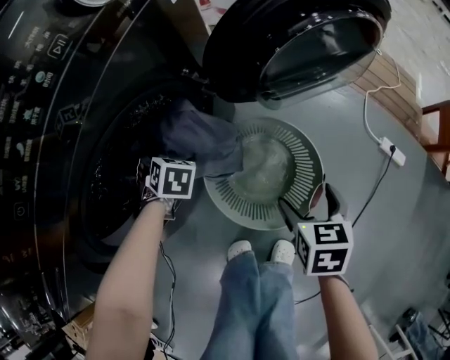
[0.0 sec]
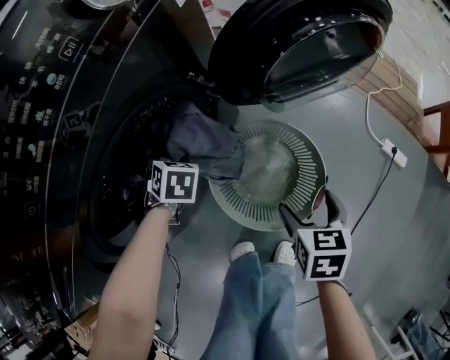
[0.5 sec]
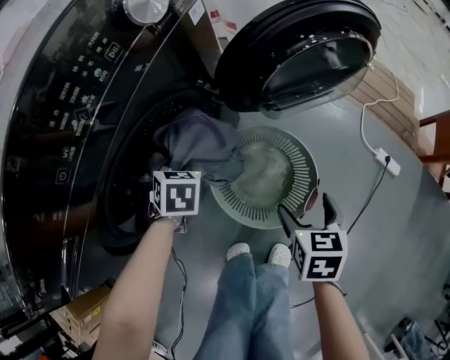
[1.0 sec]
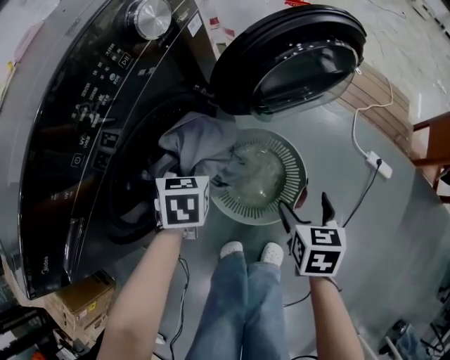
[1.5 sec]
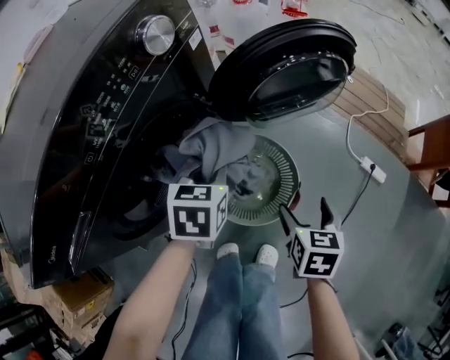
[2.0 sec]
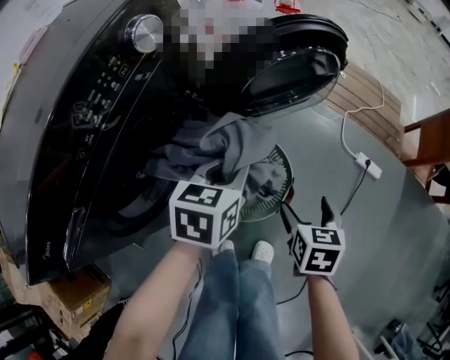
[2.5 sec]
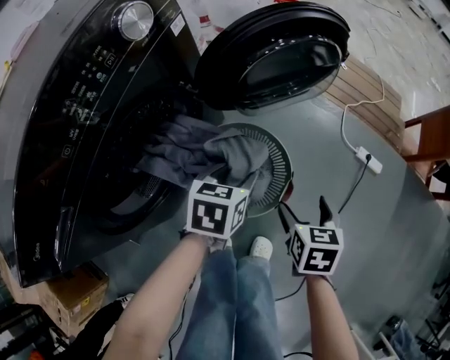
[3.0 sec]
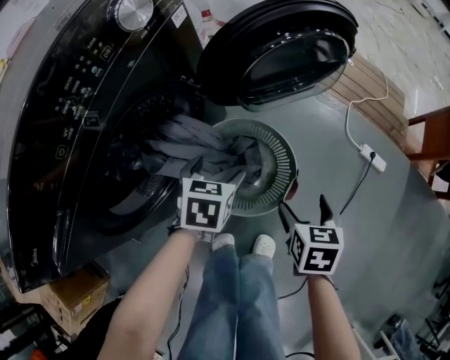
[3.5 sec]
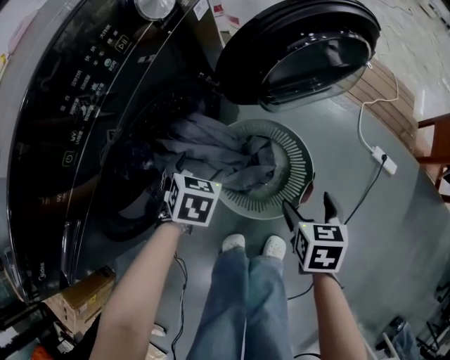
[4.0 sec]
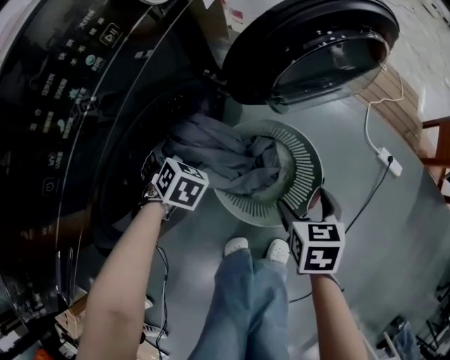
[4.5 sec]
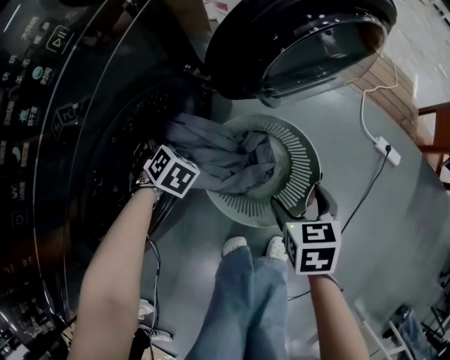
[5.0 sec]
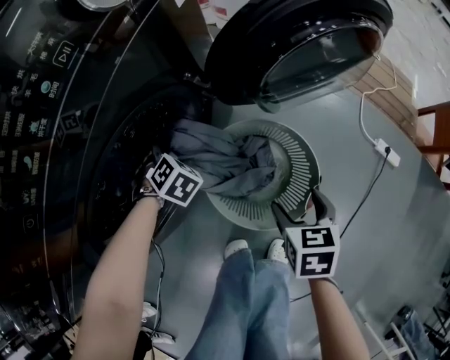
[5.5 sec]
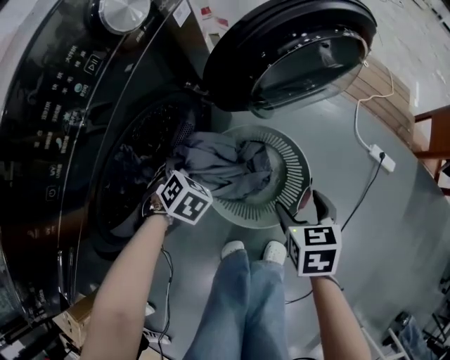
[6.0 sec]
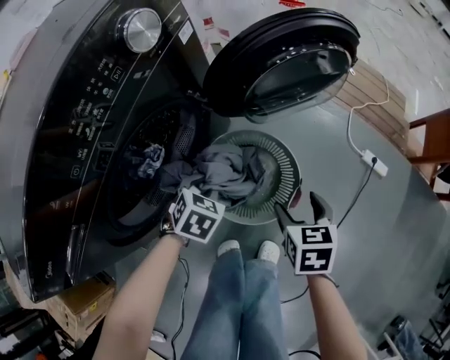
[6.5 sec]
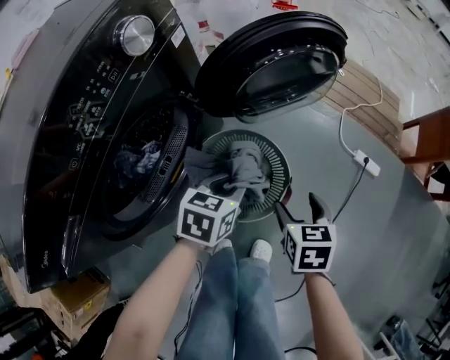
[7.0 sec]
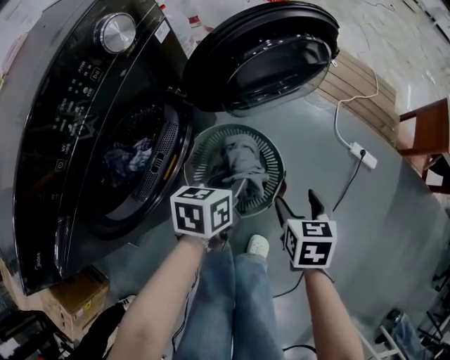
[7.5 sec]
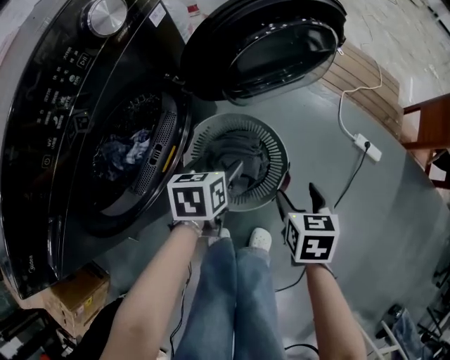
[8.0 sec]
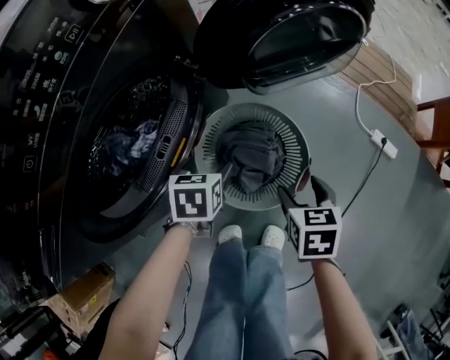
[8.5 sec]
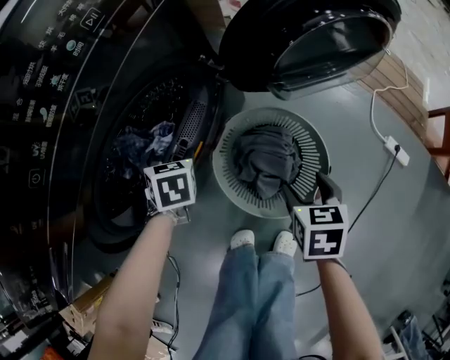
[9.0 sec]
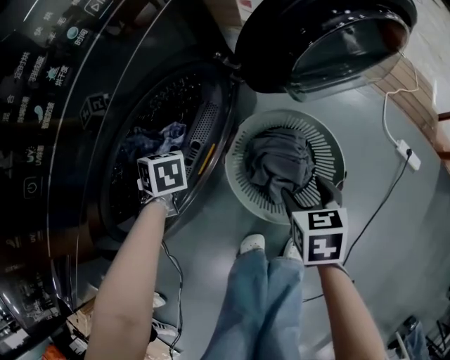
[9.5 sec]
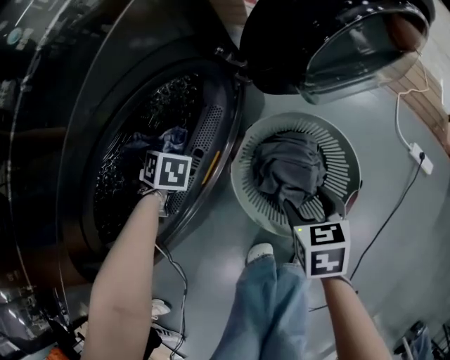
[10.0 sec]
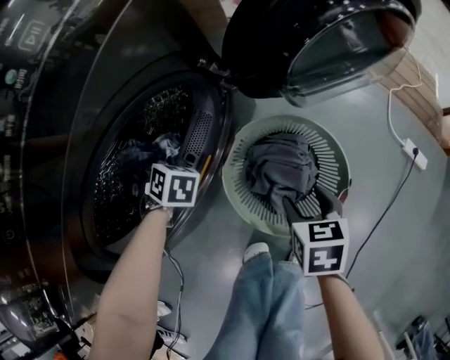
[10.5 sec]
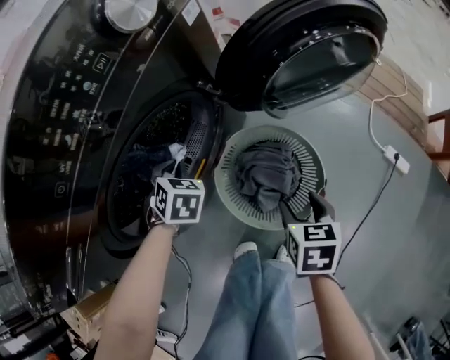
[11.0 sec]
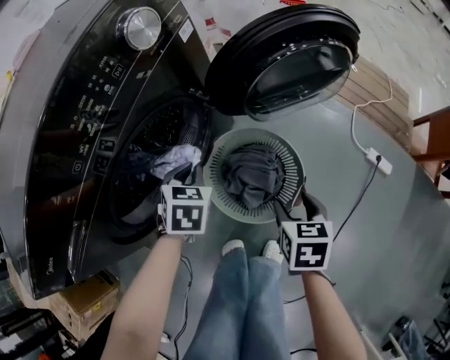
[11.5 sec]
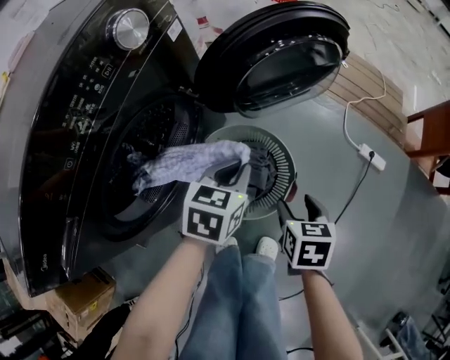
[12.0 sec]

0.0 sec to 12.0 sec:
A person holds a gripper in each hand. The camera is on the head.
0.0 sec to 2.0 sec: The right gripper shifts roughly 10 cm upward, while the left gripper moves upward, to the right and backward, roughly 25 cm, swivels some 30 degrees, and closes its fingers.
2.0 sec to 4.0 sec: The right gripper travels downward by roughly 5 cm. Meanwhile the left gripper is displaced downward and to the left by approximately 15 cm, changes its angle by roughly 20 degrees, and opens up.
4.0 sec to 6.0 sec: The left gripper travels downward by some 5 cm, turns by some 30 degrees, and closes up.
6.0 sec to 8.0 sec: The right gripper moves about 5 cm, while the left gripper ends up about 15 cm from where it was, rolls counterclockwise, seen from behind, by about 50 degrees, and opens its fingers.
8.0 sec to 10.0 sec: The left gripper moves about 35 cm, and swivels some 50 degrees; the right gripper shifts by about 20 cm.
10.0 sec to 12.0 sec: The right gripper moves about 20 cm; the left gripper ends up some 40 cm from where it was, and turns by some 60 degrees.

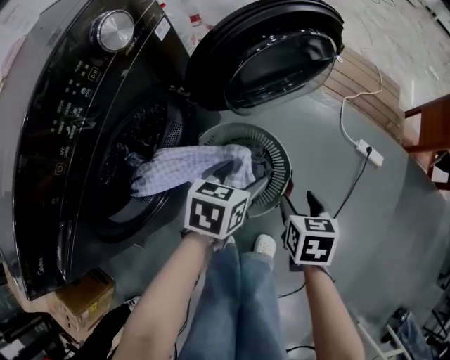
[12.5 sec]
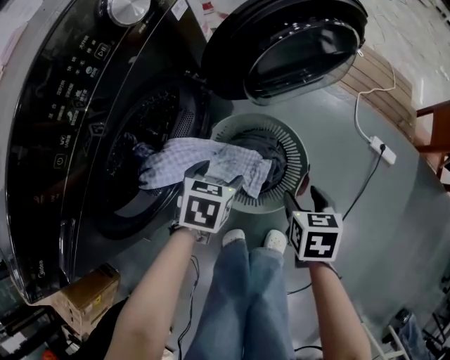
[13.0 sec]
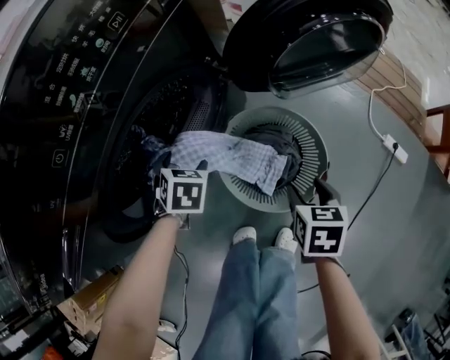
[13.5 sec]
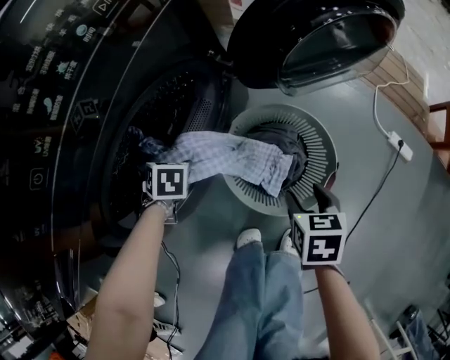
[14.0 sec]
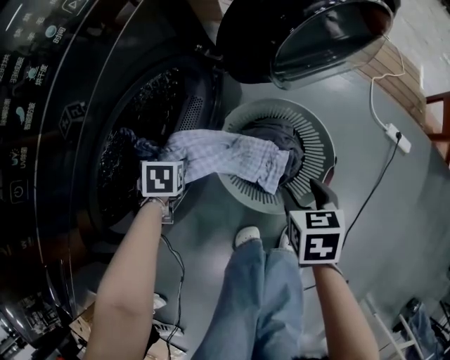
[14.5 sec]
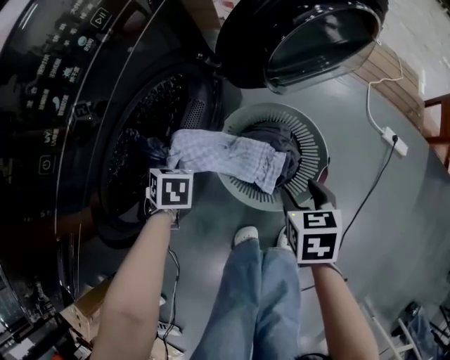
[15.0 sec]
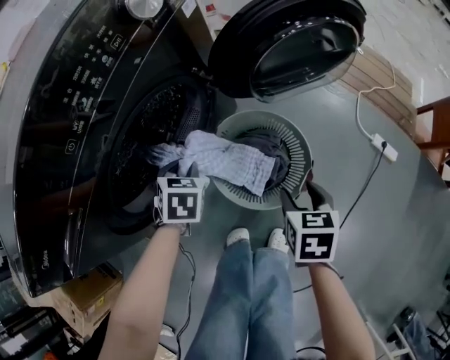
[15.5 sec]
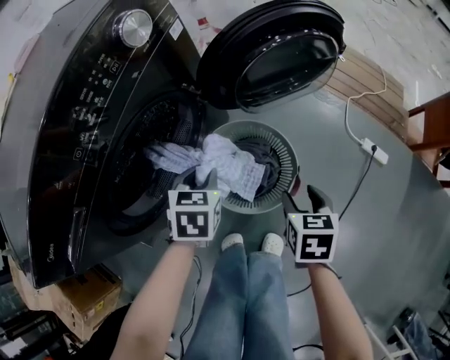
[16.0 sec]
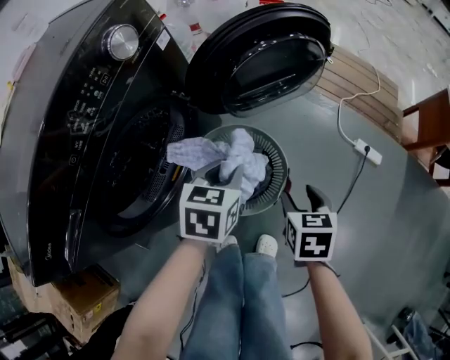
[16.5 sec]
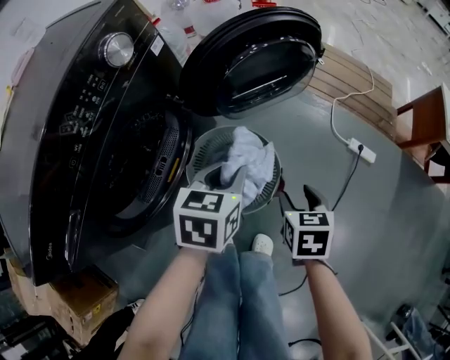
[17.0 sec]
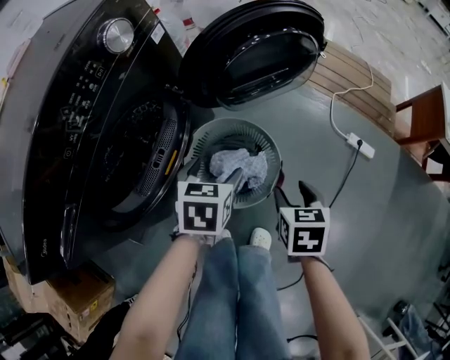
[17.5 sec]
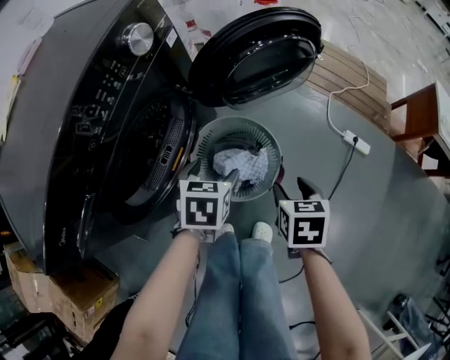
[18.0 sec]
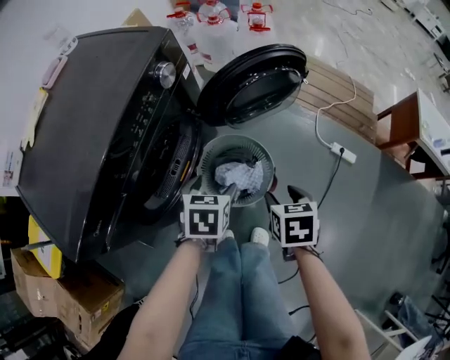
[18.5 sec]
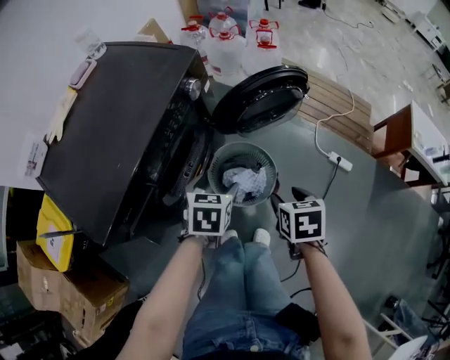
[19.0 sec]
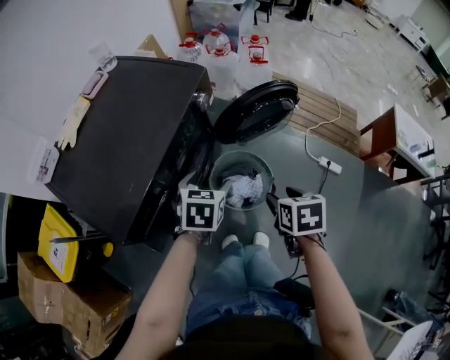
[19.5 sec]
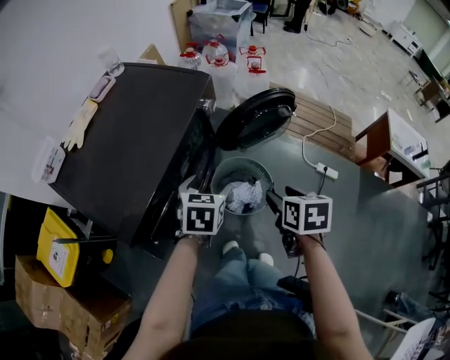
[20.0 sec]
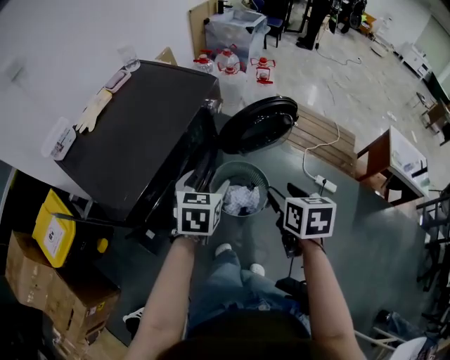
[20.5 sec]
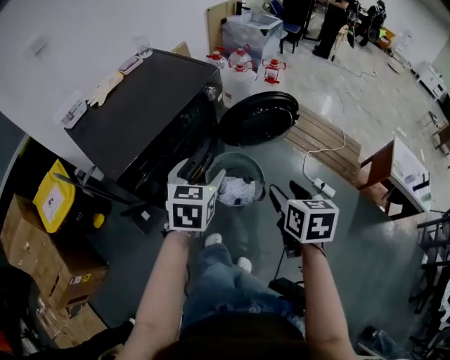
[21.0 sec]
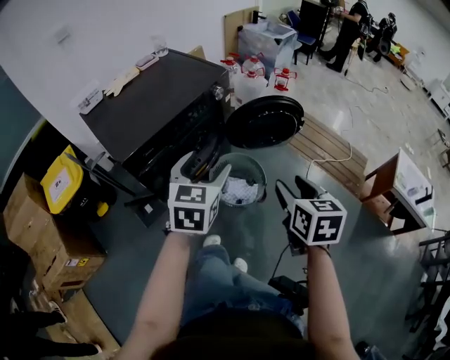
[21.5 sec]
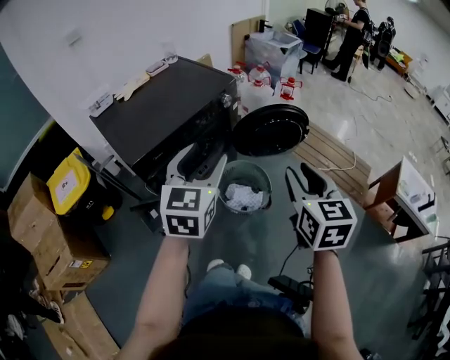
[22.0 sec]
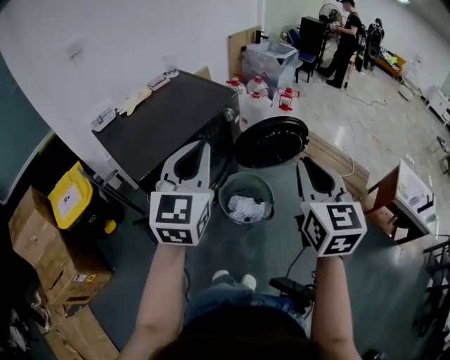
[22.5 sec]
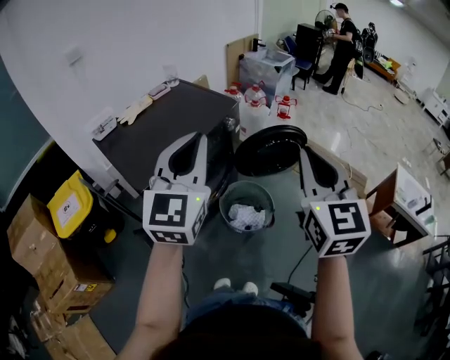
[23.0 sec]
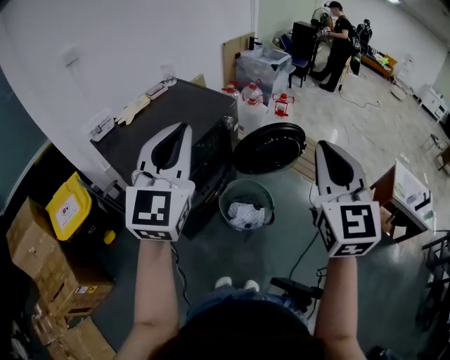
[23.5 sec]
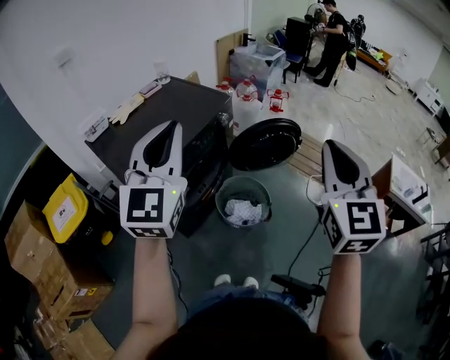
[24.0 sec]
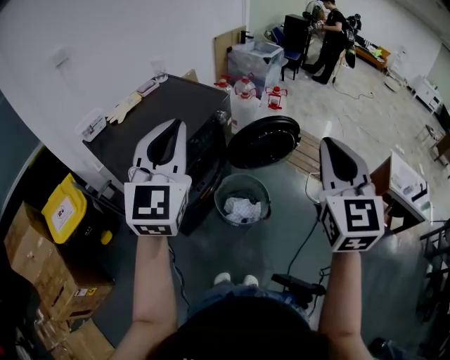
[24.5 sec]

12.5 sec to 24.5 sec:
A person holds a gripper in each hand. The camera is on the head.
12.5 sec to 14.5 sec: The left gripper ends up about 35 cm from where it was, and swivels roughly 40 degrees. The right gripper moves approximately 15 cm.
14.5 sec to 16.5 sec: The right gripper shifts by about 15 cm. Meanwhile the left gripper moves approximately 35 cm, rotates roughly 30 degrees, and closes up.
16.5 sec to 18.5 sec: The right gripper shifts roughly 15 cm upward. The left gripper moves up and down over some 10 cm, changing direction 2 times, and opens its fingers.
18.5 sec to 20.5 sec: Both grippers move upward, about 25 cm.
20.5 sec to 22.5 sec: The left gripper goes some 25 cm upward and backward, tips its fingers upward by some 40 degrees, and closes up, while the right gripper moves upward, approximately 20 cm, tips its fingers upward by roughly 30 degrees, and closes up.
22.5 sec to 24.5 sec: The grippers both shift upward by roughly 5 cm.

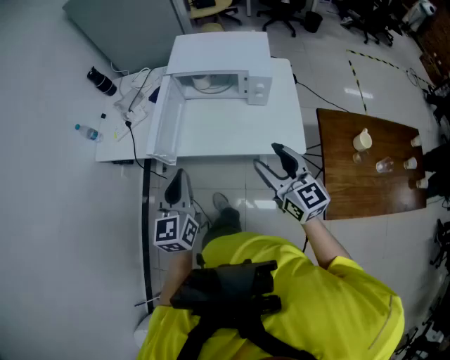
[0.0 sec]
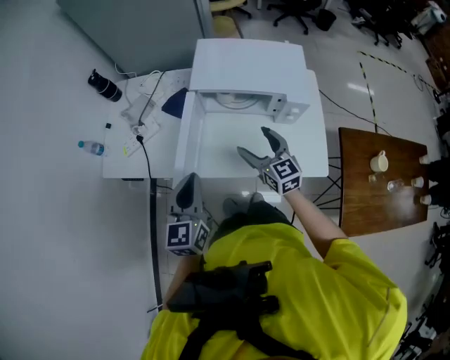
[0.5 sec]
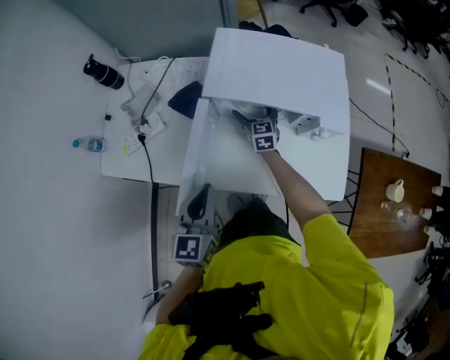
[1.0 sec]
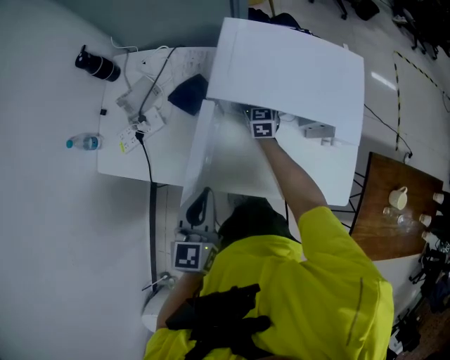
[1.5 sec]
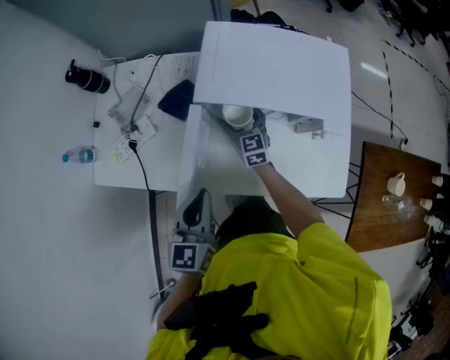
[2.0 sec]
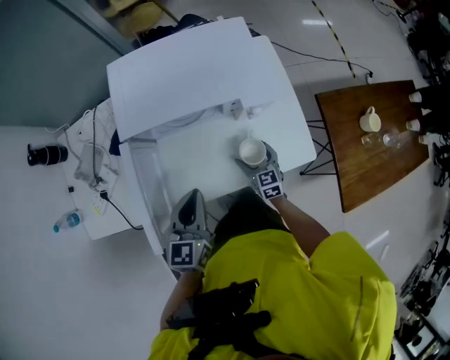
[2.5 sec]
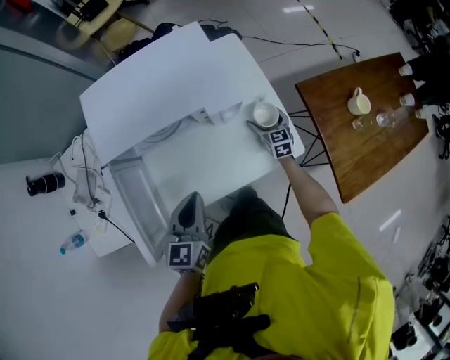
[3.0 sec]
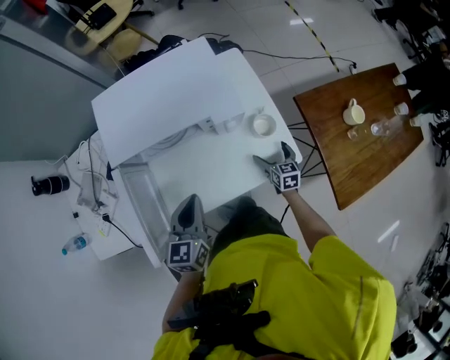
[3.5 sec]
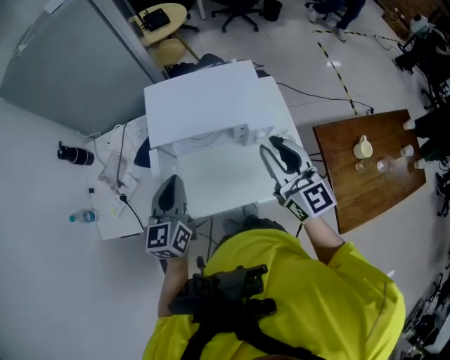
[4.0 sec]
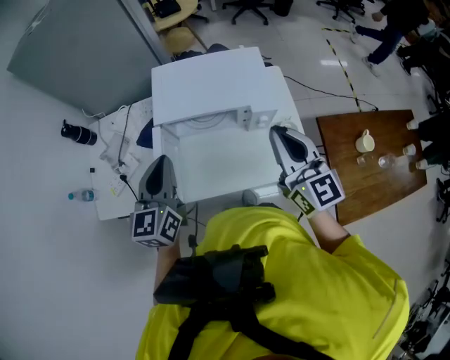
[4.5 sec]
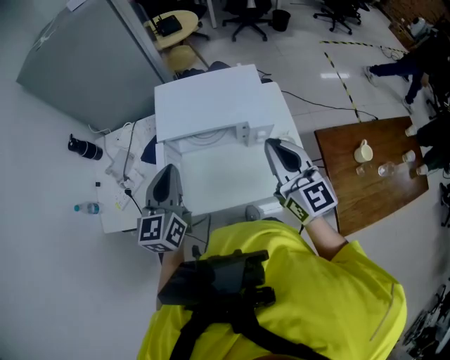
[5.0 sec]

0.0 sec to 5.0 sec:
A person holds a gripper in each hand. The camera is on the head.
0.0 sec to 2.5 sec: The left gripper ends up some 30 cm from where it was, and rotates roughly 30 degrees. The right gripper goes up and down, about 35 cm each way, reversing 2 times, and rotates roughly 40 degrees.
2.5 sec to 5.0 sec: The right gripper travels upward by some 40 cm, points its fingers some 30 degrees further upward, and closes up, while the left gripper heads upward, covering some 20 cm.
